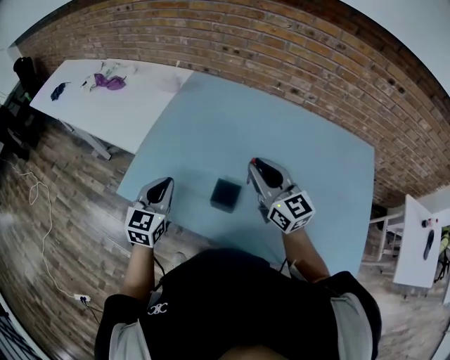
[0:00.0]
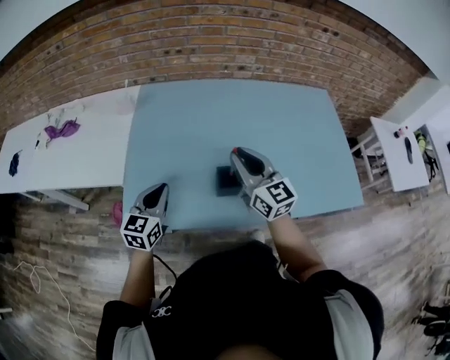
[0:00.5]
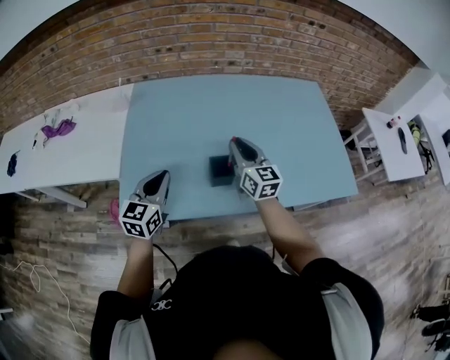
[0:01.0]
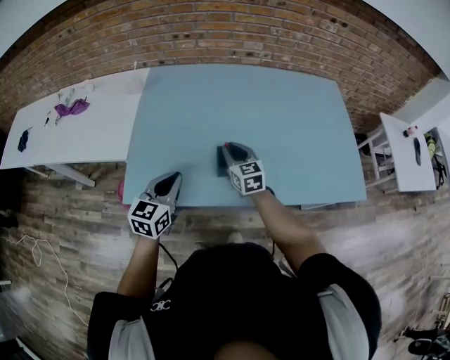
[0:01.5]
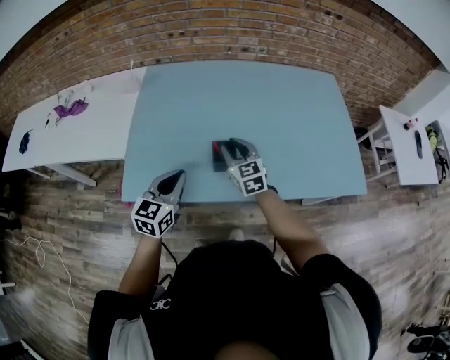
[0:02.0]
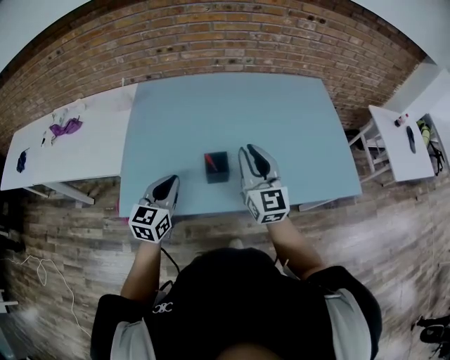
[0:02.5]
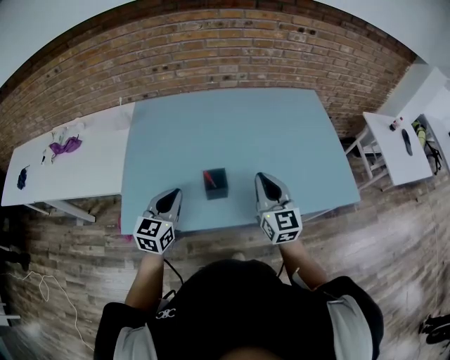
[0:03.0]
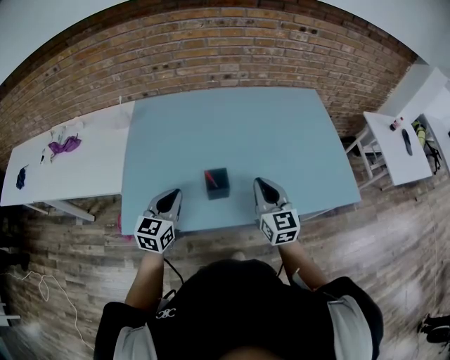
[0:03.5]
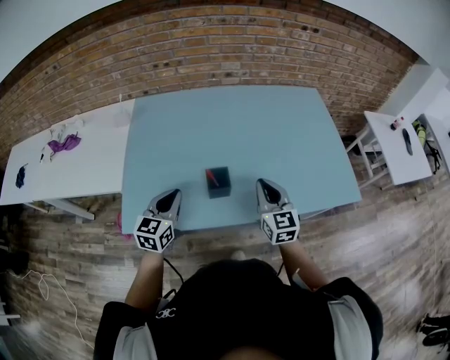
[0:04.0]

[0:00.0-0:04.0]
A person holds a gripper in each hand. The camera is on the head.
0:00.0 to 0:02.0: The left gripper shifts by about 5 cm, and turns by roughly 30 degrees, while the right gripper travels downward by about 10 cm, and turns by about 30 degrees.
0:02.0 to 0:04.0: The right gripper moves to the right and backward, about 15 cm, and closes.

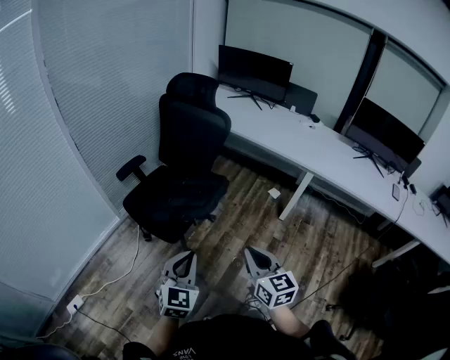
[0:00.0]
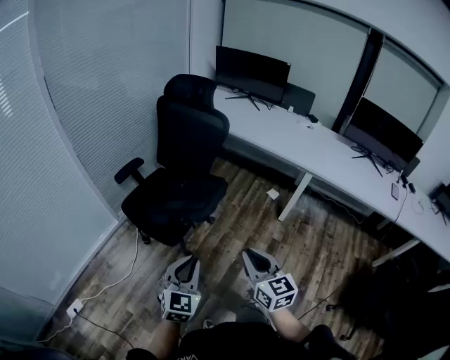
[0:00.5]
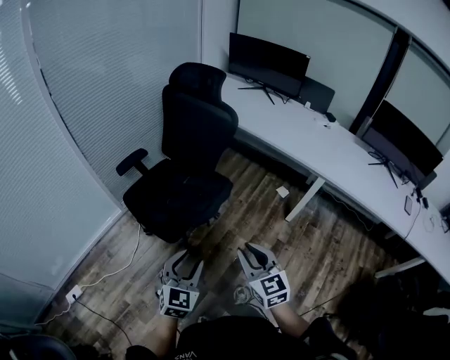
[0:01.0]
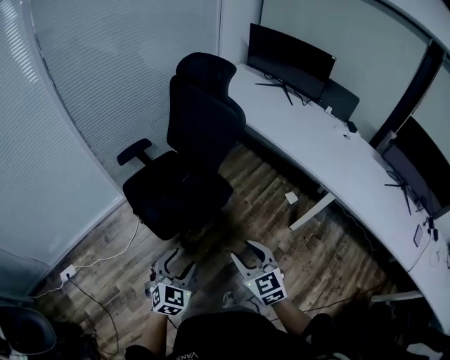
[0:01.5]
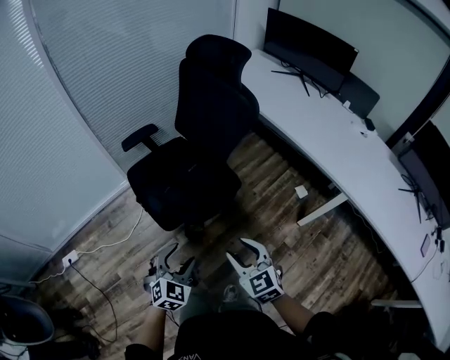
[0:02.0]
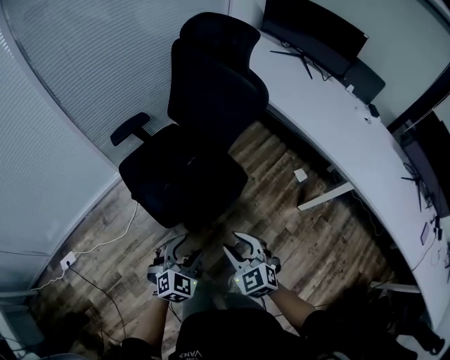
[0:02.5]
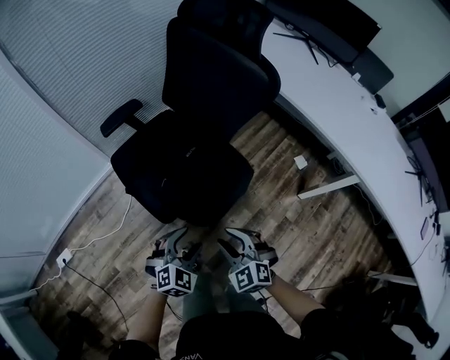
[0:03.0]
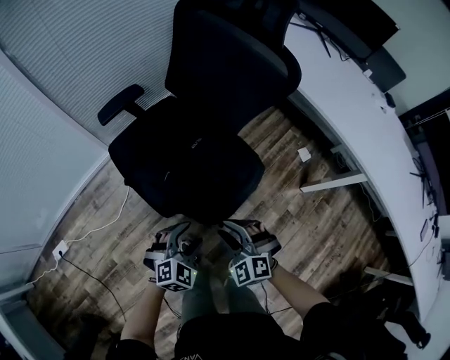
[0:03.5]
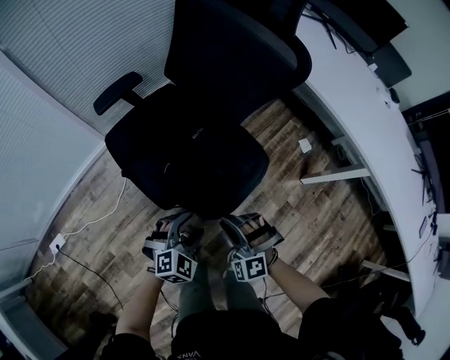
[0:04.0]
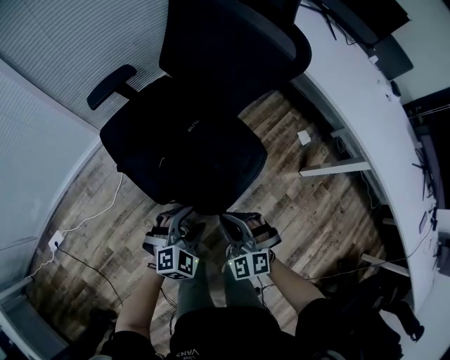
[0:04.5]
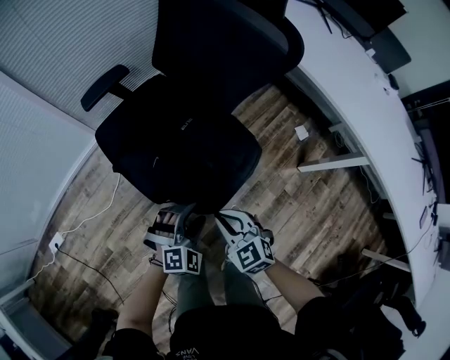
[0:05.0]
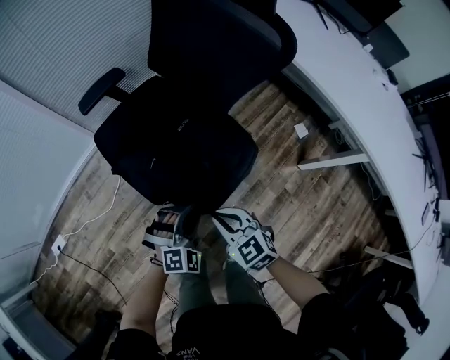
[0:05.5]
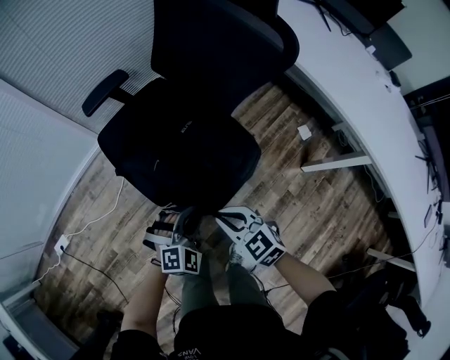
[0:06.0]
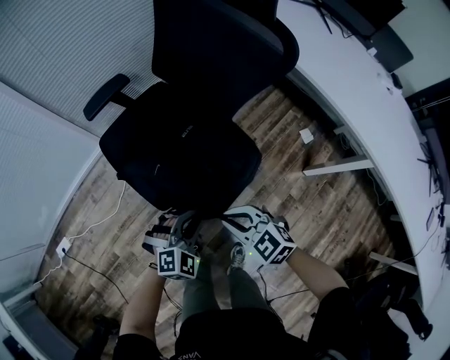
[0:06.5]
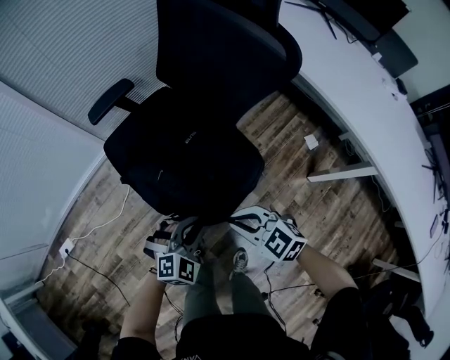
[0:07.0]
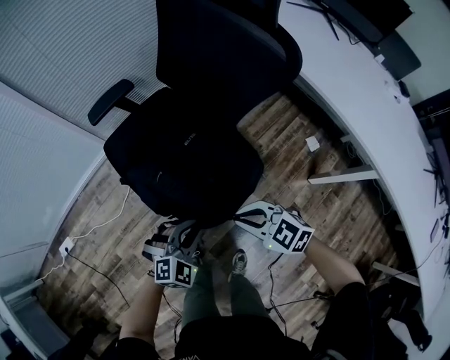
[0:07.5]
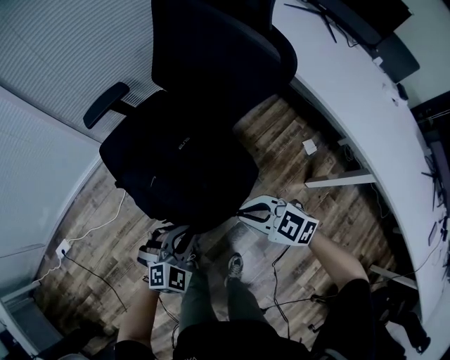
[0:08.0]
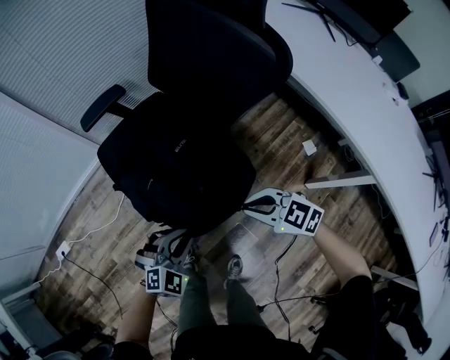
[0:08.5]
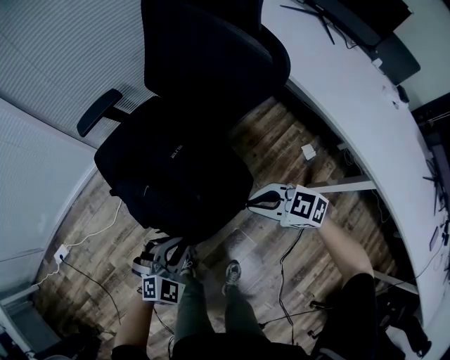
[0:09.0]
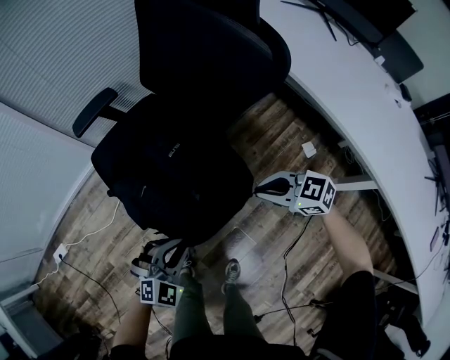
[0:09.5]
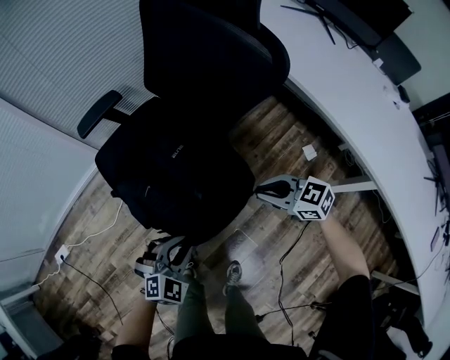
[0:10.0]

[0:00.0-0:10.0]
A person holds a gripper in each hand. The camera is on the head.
0:00.0 to 0:02.0: The left gripper is displaced forward, downward and to the right by approximately 25 cm, rotates roughly 20 degrees, and opens up; the right gripper moves forward and downward, some 25 cm, changes its angle by approximately 40 degrees, and opens its fingers.
0:02.0 to 0:04.0: The right gripper shifts approximately 25 cm downward, to the left and forward, and rotates around the line of its fingers by roughly 50 degrees, counterclockwise from behind, while the left gripper is displaced downward, forward and to the left by roughly 20 cm, and turns by roughly 20 degrees.
0:04.0 to 0:06.0: The left gripper shifts by about 5 cm, and closes its fingers; the right gripper twists about 50 degrees clockwise, seen from behind.
0:06.0 to 0:08.0: The right gripper is displaced to the right by roughly 10 cm, and rotates approximately 20 degrees.
0:08.0 to 0:10.0: The right gripper travels to the right and forward by some 10 cm.

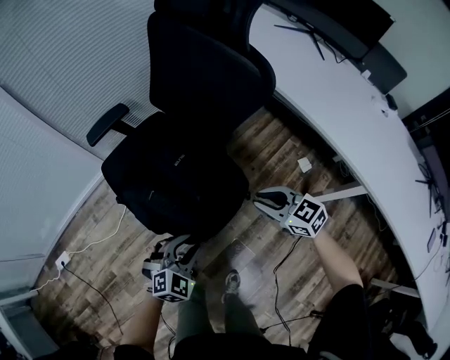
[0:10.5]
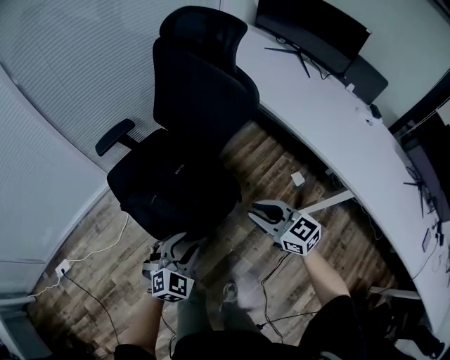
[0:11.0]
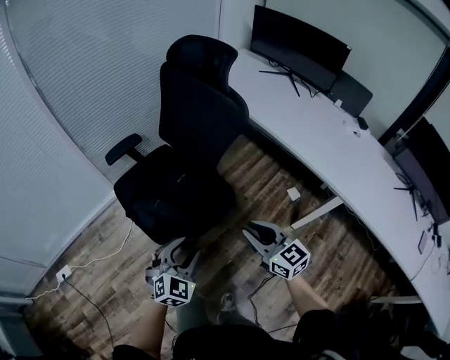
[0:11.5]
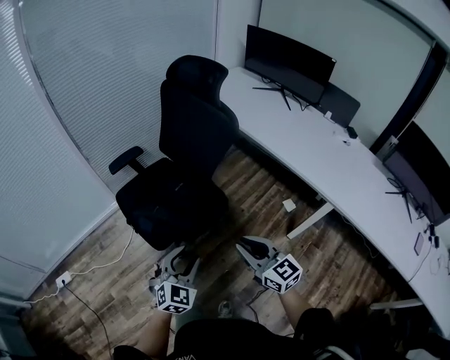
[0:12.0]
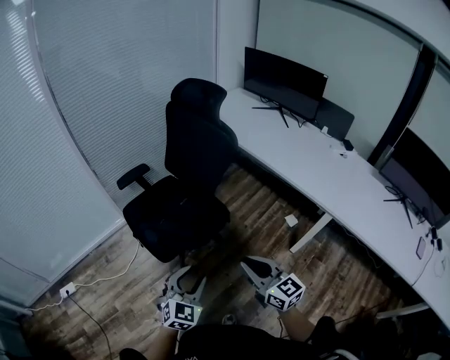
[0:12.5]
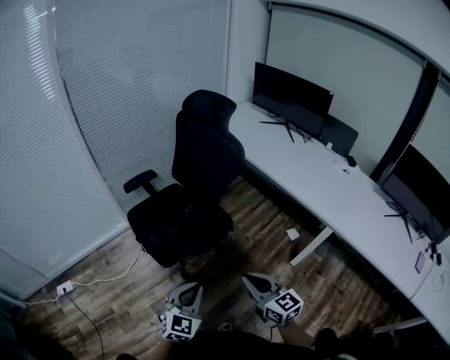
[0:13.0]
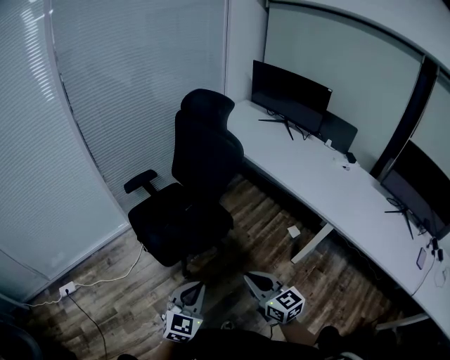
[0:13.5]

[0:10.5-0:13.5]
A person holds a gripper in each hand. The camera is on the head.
0:10.5 to 0:12.0: The left gripper heads upward and backward, covering some 20 cm, and turns by roughly 20 degrees. The right gripper goes some 30 cm backward and upward, and changes its angle by about 30 degrees.
0:12.0 to 0:13.5: The two grippers go about 10 cm backward. The left gripper closes up.

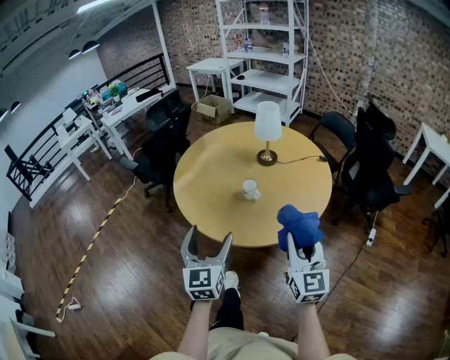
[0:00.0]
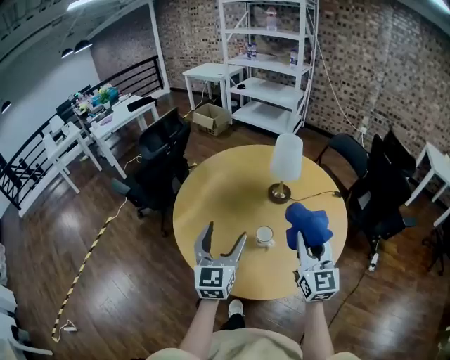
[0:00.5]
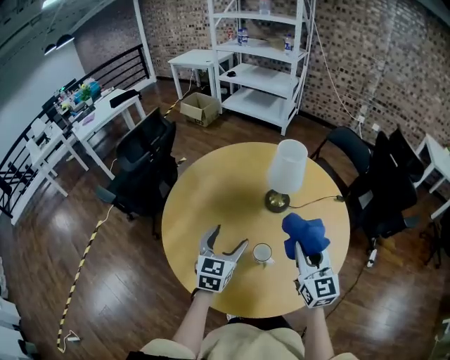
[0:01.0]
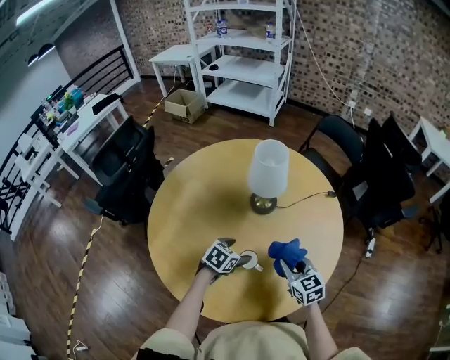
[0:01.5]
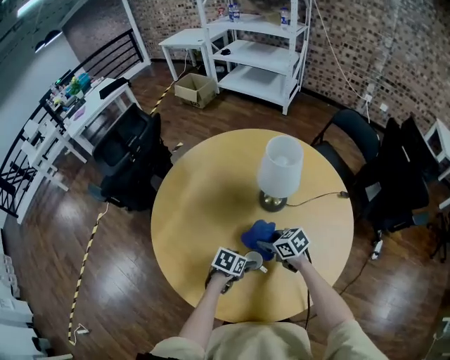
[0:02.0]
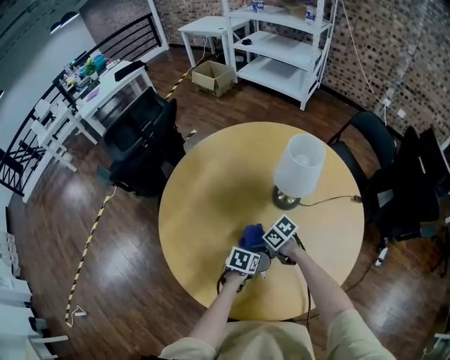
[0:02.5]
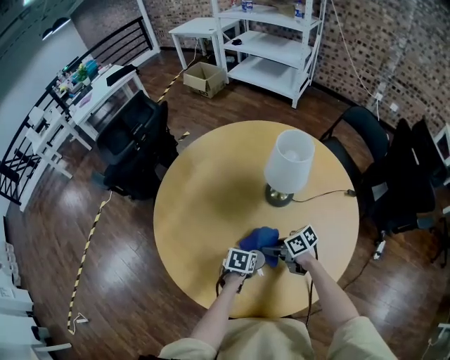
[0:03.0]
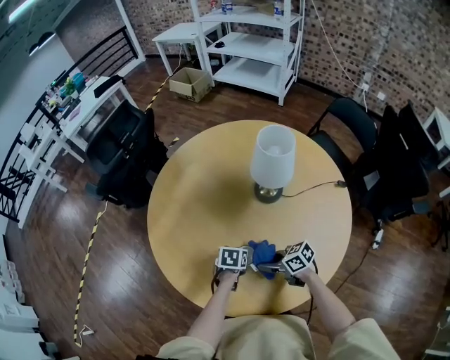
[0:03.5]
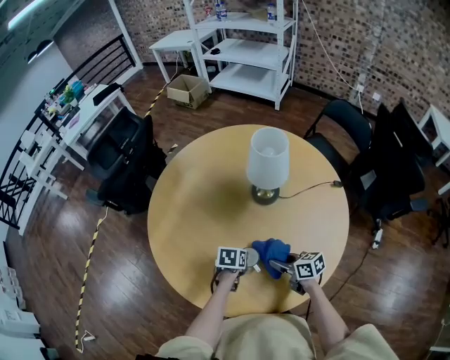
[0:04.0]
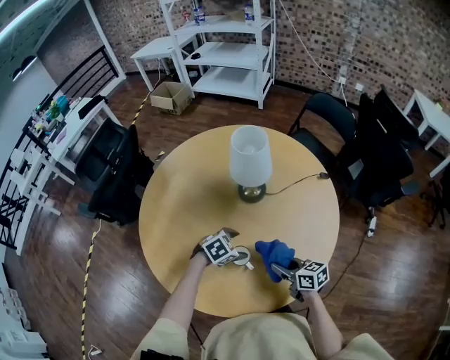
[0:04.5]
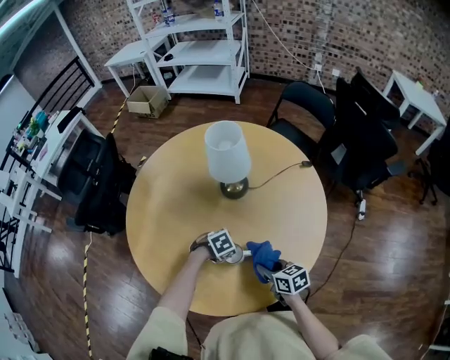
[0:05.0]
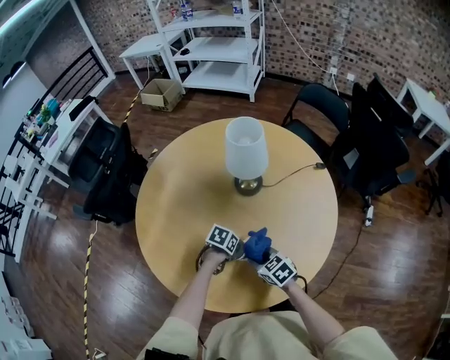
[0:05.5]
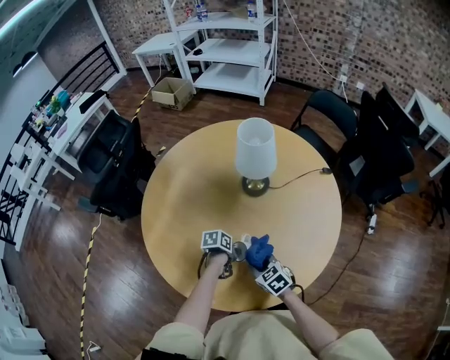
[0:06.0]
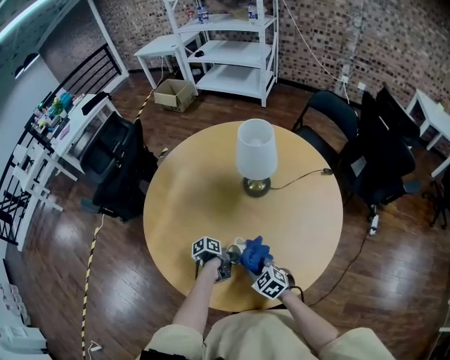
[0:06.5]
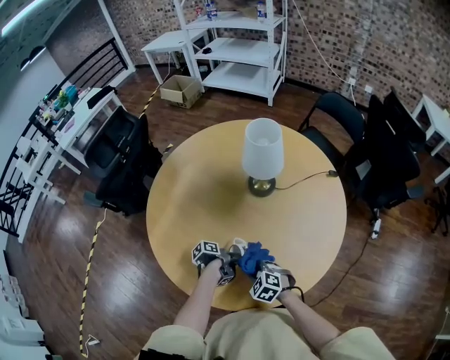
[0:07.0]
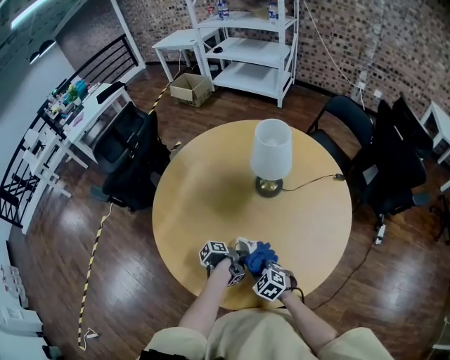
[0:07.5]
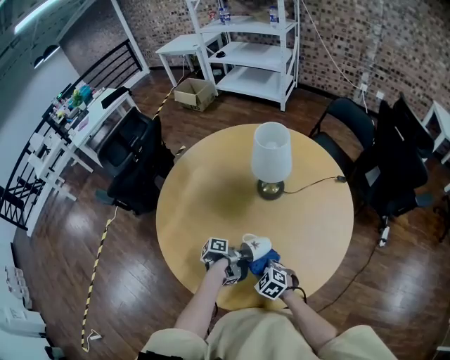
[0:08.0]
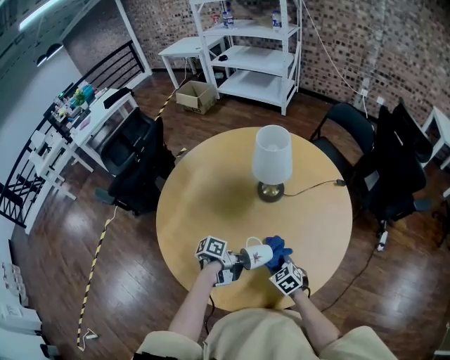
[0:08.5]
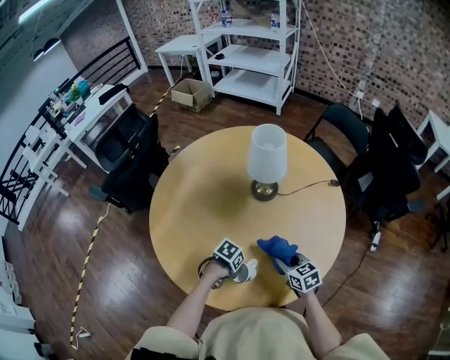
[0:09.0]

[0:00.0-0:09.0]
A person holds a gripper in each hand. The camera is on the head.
0:00.0 to 0:02.0: The right gripper moves approximately 50 cm, and angles its fingers downward, by about 40 degrees; the left gripper changes place by approximately 50 cm, and points its fingers approximately 50 degrees further downward.
0:02.0 to 0:04.5: The left gripper changes place by approximately 5 cm, twists roughly 50 degrees clockwise, seen from behind, and closes and opens again. The right gripper ends up about 15 cm from where it was, and rotates about 30 degrees.
0:04.5 to 0:07.0: The left gripper goes about 10 cm downward, rolls counterclockwise, seen from behind, by roughly 110 degrees, and closes its fingers. Meanwhile the right gripper changes place by approximately 15 cm, and rolls counterclockwise, seen from behind, by approximately 50 degrees.
0:07.0 to 0:09.0: The left gripper reaches approximately 10 cm upward, then returns, and twists about 60 degrees clockwise, seen from behind. The right gripper moves some 15 cm, and turns by roughly 40 degrees.
